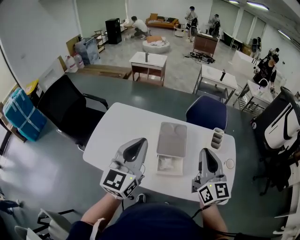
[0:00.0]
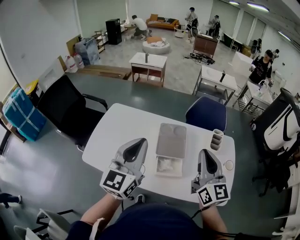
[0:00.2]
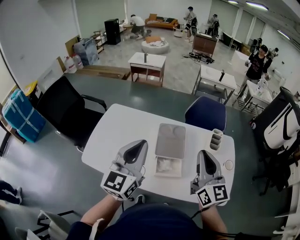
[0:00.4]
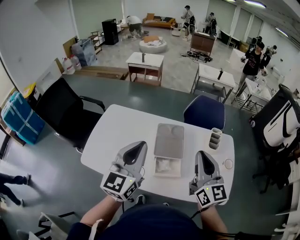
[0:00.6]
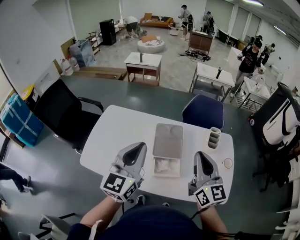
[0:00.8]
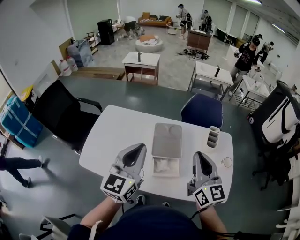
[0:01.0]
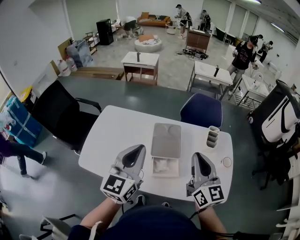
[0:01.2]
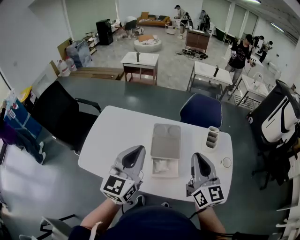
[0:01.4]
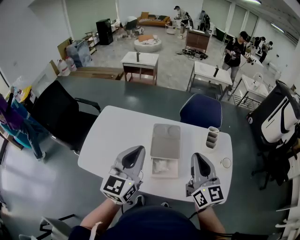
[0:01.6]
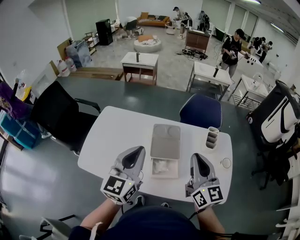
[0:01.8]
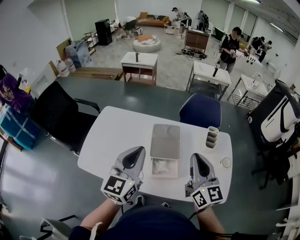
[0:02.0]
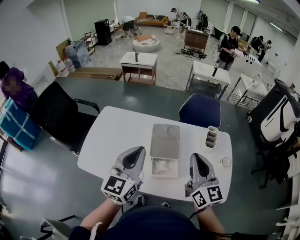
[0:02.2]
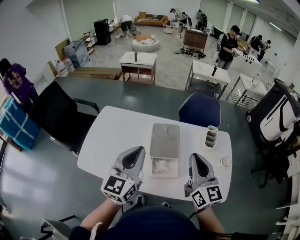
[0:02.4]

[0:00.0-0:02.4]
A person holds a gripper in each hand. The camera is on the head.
0:00.0 to 0:01.2: The grippers stay close to where they were, moving slightly.
0:01.2 to 0:02.4: The two grippers keep their place.

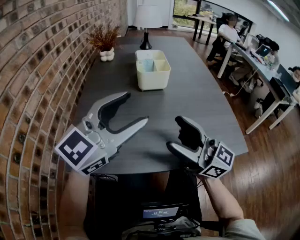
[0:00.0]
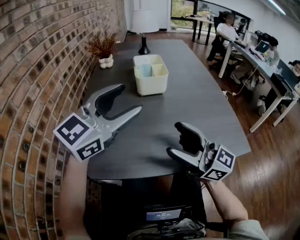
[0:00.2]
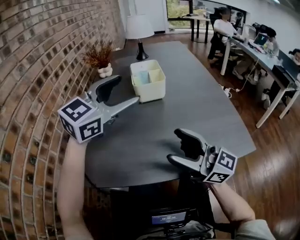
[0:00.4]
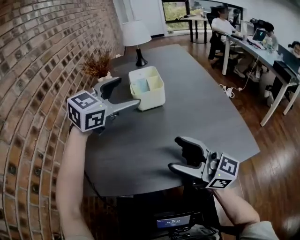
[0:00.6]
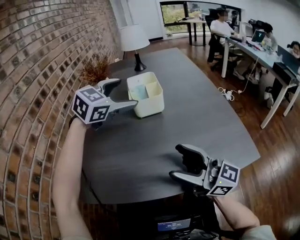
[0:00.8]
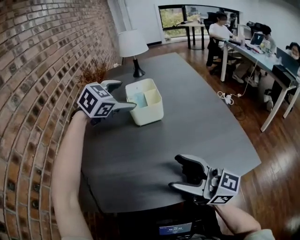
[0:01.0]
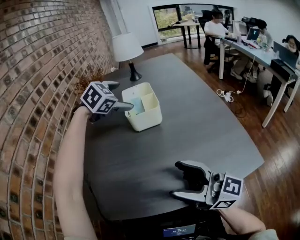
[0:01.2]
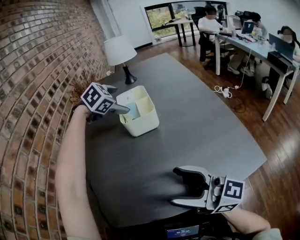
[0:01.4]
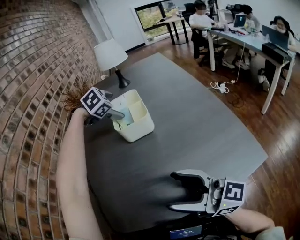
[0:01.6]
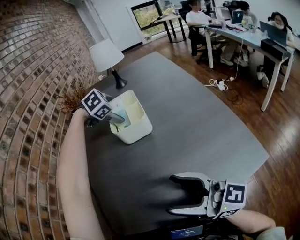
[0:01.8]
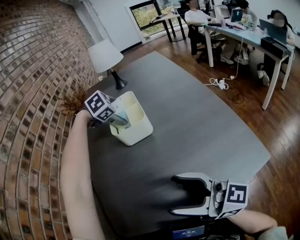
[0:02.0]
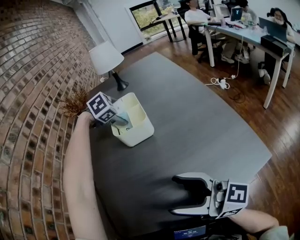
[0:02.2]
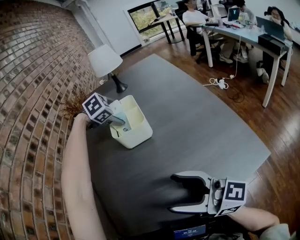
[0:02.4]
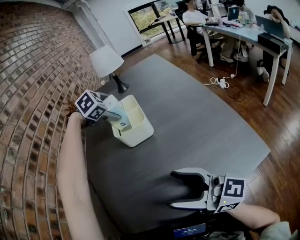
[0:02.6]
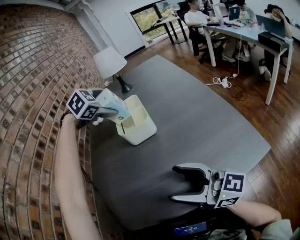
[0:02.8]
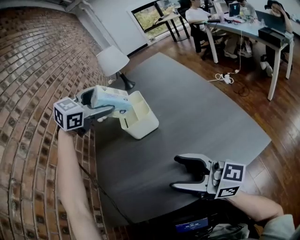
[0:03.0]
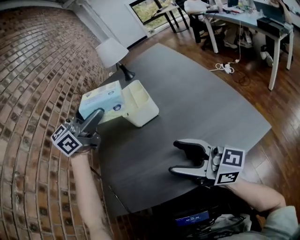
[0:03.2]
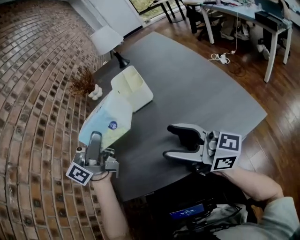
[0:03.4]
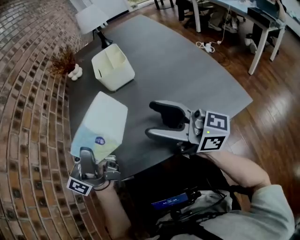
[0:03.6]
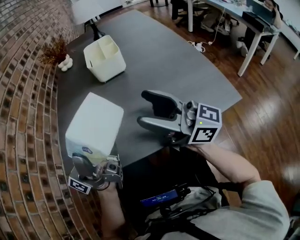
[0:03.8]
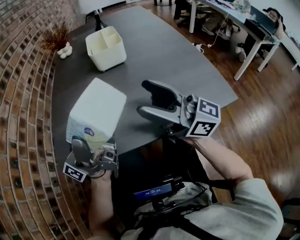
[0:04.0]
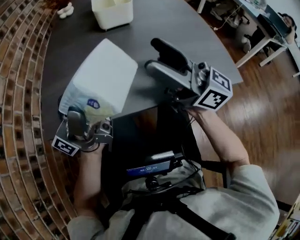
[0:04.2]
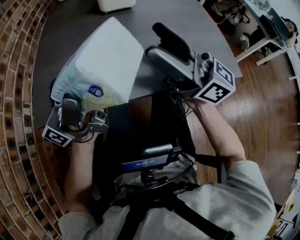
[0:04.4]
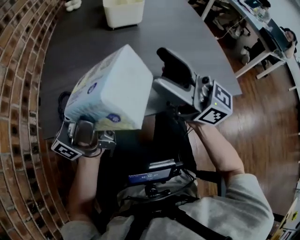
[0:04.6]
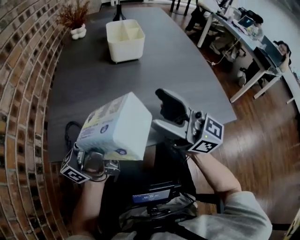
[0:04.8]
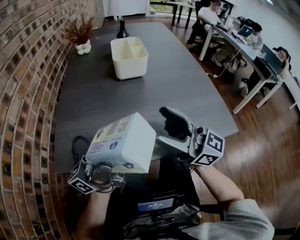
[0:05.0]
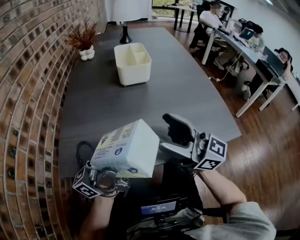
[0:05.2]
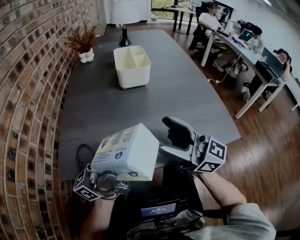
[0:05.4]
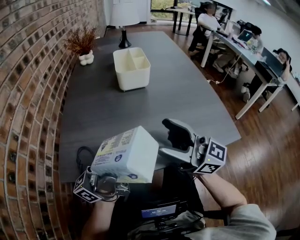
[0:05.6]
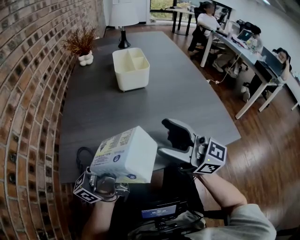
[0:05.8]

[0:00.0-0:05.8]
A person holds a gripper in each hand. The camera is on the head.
0:00.0 to 0:01.4: The left gripper moves forward, roughly 35 cm, points its fingers approximately 50 degrees further downward, and opens its fingers.
0:01.4 to 0:02.8: The left gripper travels upward by about 5 cm.
0:02.8 to 0:04.4: The left gripper travels backward by roughly 40 cm, and angles its fingers upward, by some 100 degrees.
0:04.4 to 0:05.8: The grippers move only a little.

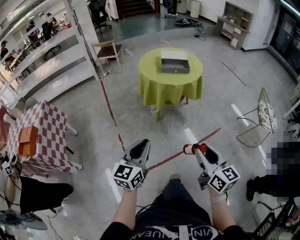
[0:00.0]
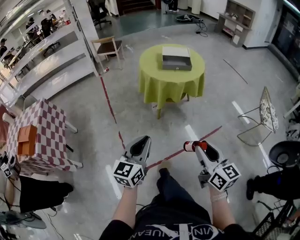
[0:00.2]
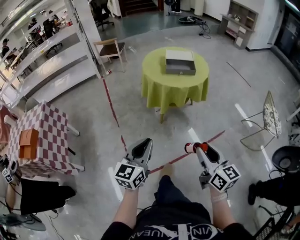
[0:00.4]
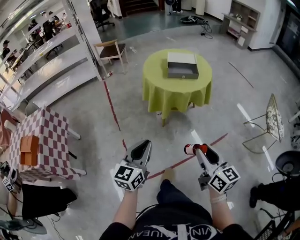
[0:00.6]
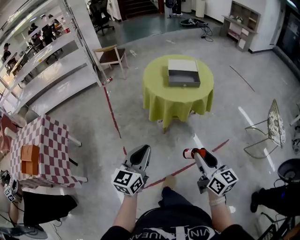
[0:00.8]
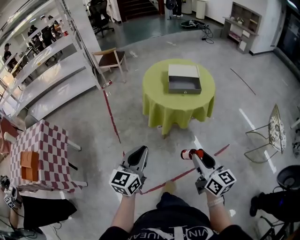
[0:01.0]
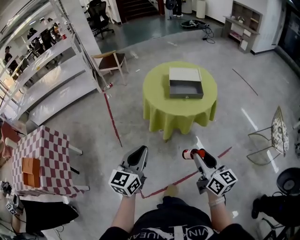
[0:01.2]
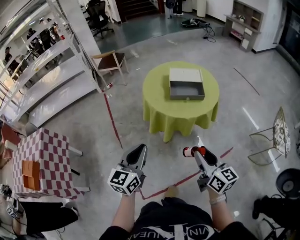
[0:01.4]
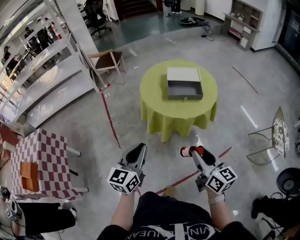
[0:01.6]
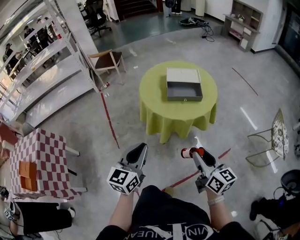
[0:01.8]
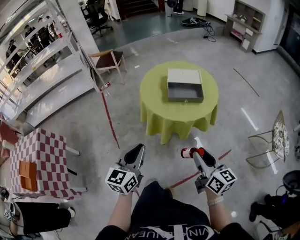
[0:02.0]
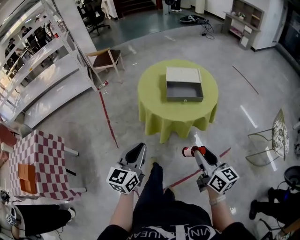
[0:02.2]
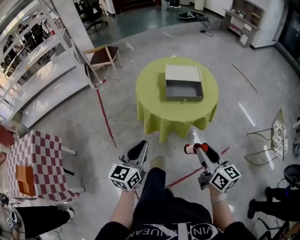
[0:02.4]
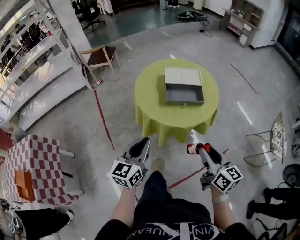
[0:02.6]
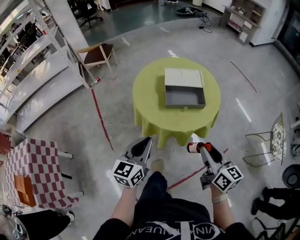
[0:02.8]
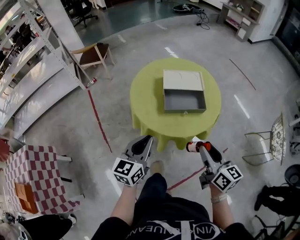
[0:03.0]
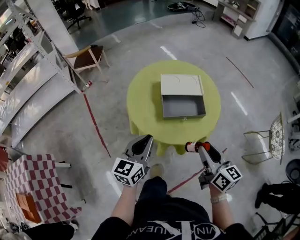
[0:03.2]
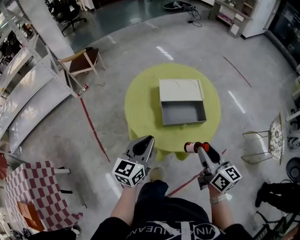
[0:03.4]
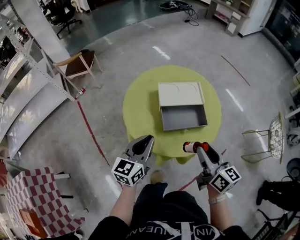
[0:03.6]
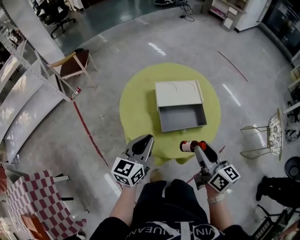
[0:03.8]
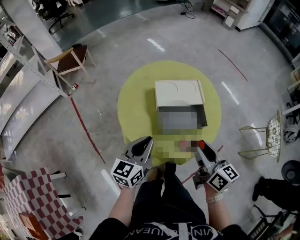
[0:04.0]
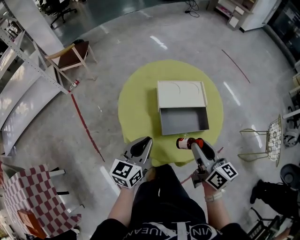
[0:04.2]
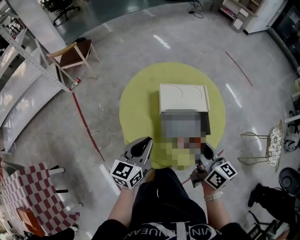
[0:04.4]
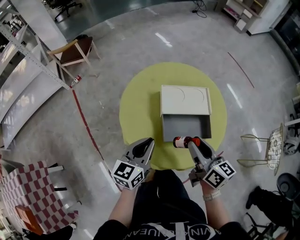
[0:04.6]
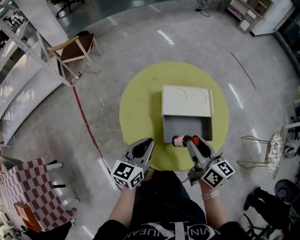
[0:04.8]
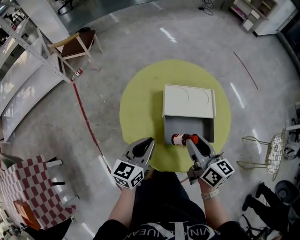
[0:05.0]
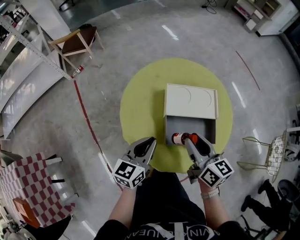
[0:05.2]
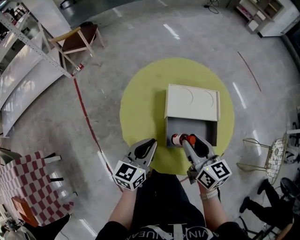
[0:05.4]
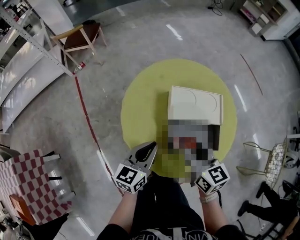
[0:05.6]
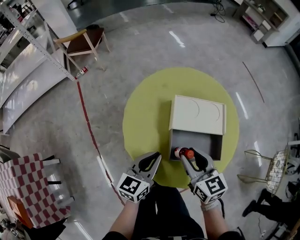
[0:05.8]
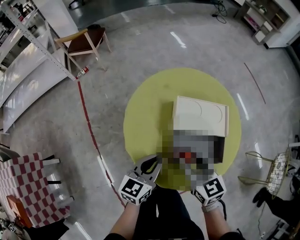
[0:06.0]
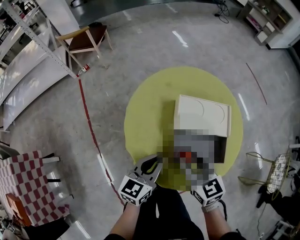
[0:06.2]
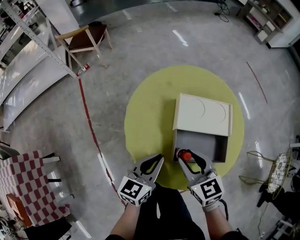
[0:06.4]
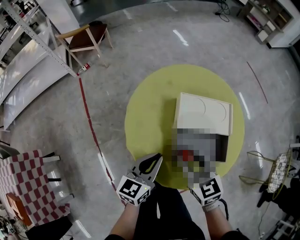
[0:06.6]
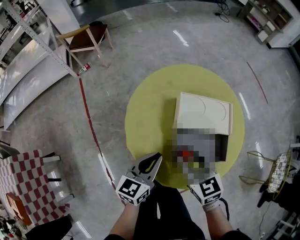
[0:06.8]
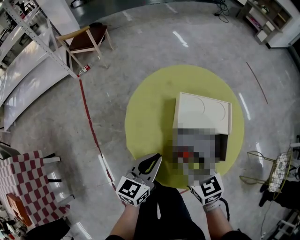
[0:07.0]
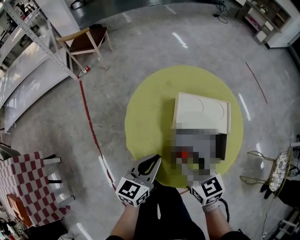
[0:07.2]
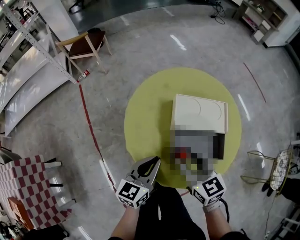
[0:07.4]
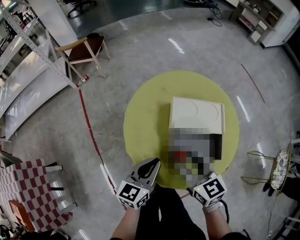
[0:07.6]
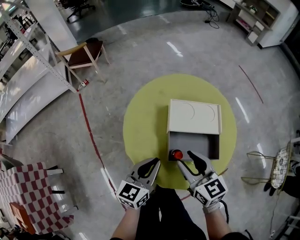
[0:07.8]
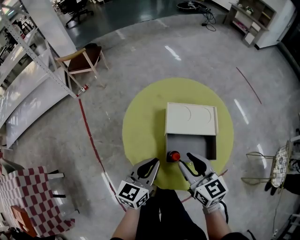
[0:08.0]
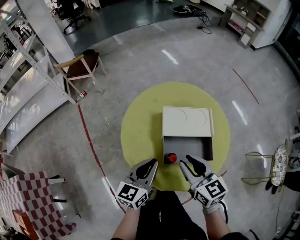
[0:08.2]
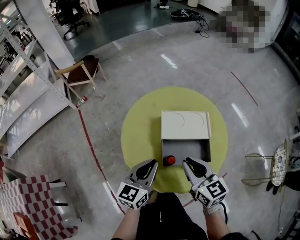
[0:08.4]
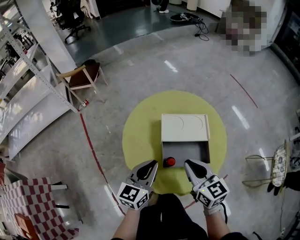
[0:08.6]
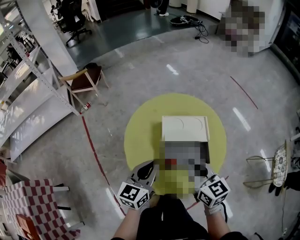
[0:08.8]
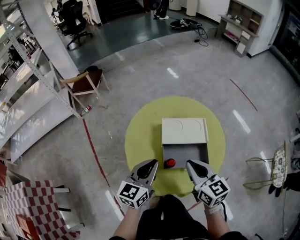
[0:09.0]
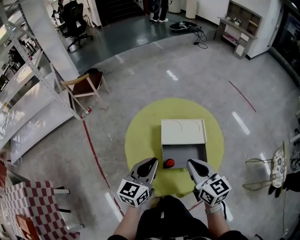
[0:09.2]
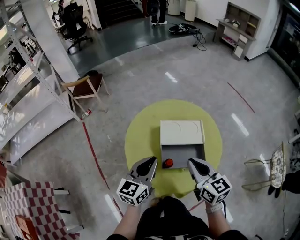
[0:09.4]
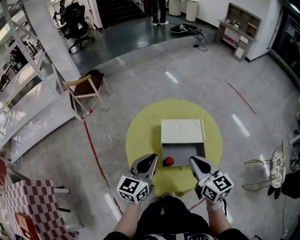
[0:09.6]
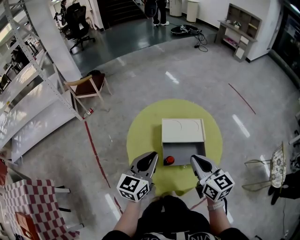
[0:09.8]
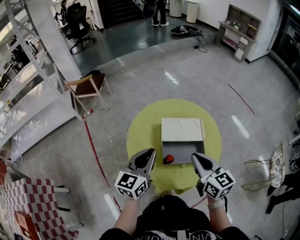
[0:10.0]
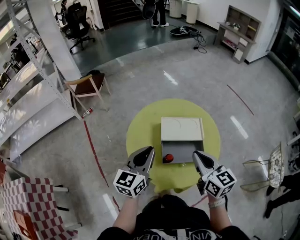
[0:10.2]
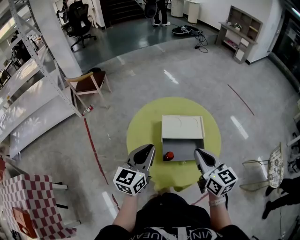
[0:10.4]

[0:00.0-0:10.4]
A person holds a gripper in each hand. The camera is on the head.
0:00.0 to 0:01.4: The two grippers go roughly 30 cm forward.
0:01.4 to 0:03.0: The grippers both shift forward by roughly 20 cm.
0:03.0 to 0:04.4: Both grippers travel together forward, about 20 cm.
0:04.4 to 0:06.0: The right gripper is displaced downward, to the left and forward by about 10 cm, and changes its angle by roughly 40 degrees. Meanwhile the left gripper goes roughly 5 cm downward.
0:06.0 to 0:07.4: The grippers move only a little.
0:07.4 to 0:09.0: The right gripper shifts some 10 cm upward and to the right, and closes its fingers; the left gripper is displaced upward by some 10 cm.
0:09.0 to 0:10.4: The two grippers go approximately 5 cm upward.

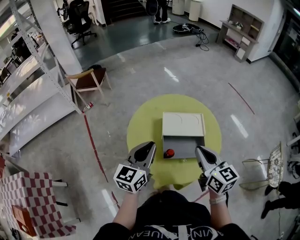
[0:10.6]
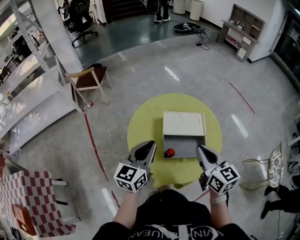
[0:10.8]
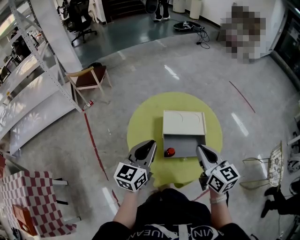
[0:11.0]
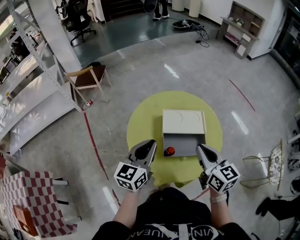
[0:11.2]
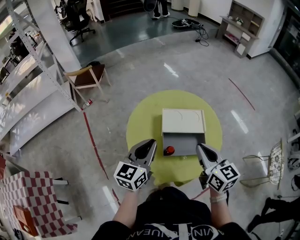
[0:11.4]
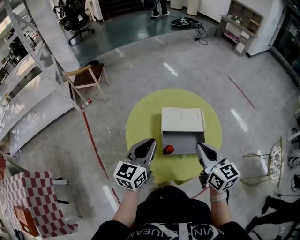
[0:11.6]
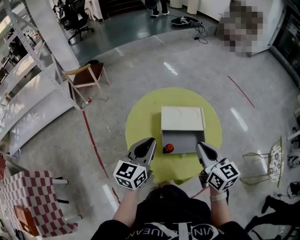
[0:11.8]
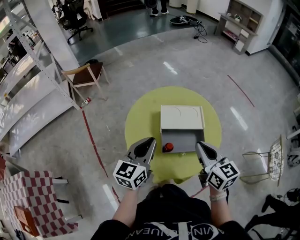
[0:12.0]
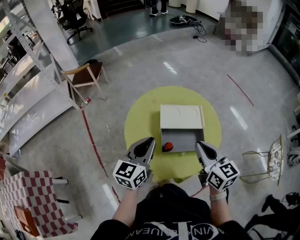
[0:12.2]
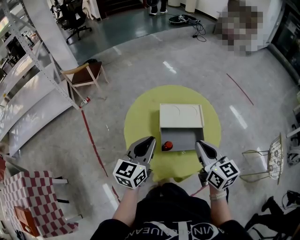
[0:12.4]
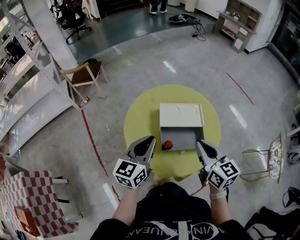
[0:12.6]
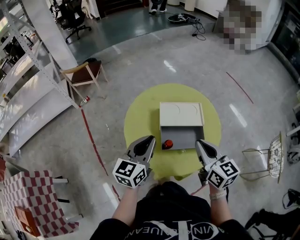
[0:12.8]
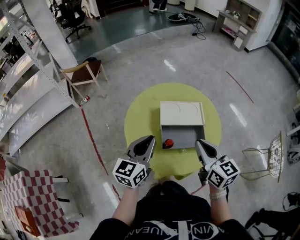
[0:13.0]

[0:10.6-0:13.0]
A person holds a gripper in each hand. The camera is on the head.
0:10.6 to 0:11.8: Neither gripper changes place.
0:11.8 to 0:13.0: Both grippers stay put.

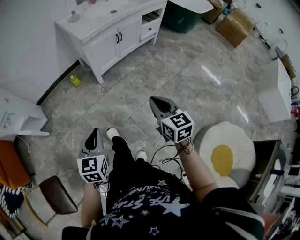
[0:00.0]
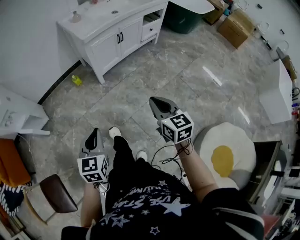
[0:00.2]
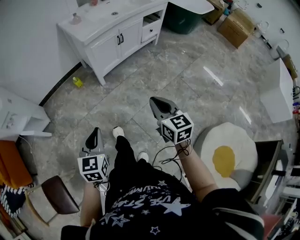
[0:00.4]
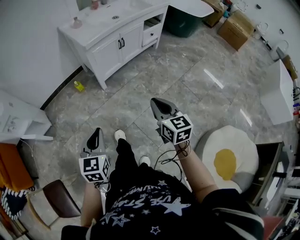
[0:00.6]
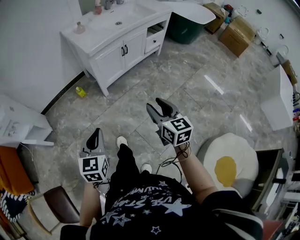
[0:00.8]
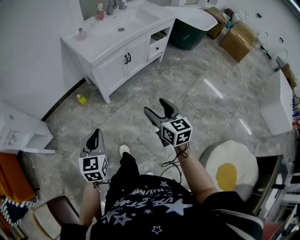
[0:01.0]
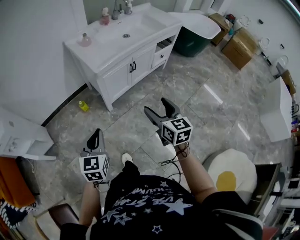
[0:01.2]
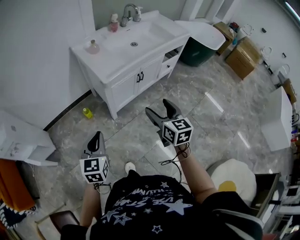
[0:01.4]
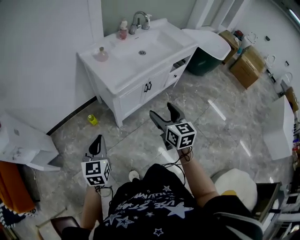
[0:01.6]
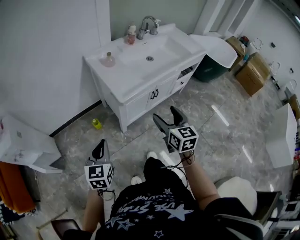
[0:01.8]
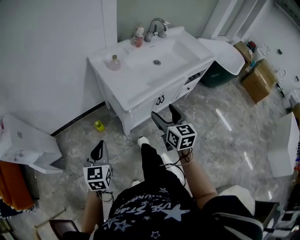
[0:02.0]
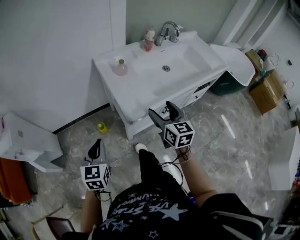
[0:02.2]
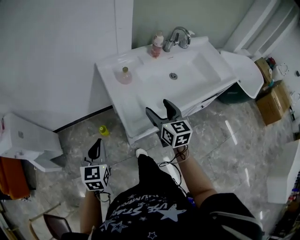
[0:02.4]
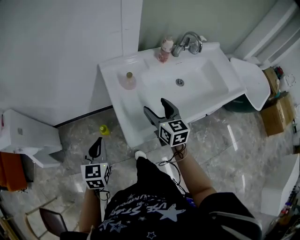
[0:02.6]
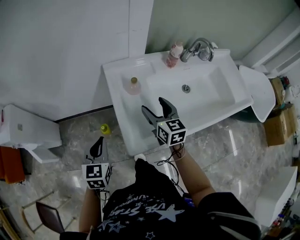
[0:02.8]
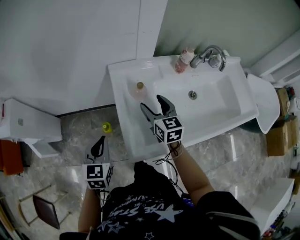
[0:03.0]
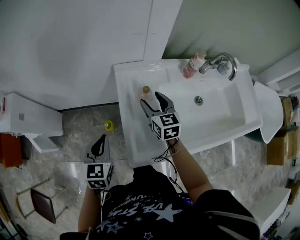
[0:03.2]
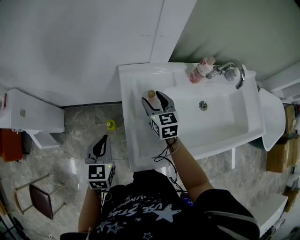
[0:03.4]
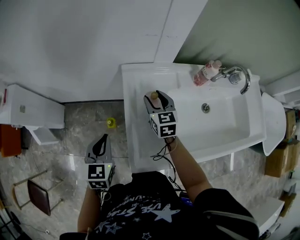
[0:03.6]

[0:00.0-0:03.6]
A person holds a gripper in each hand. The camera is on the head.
0:00.0 to 0:01.8: Both grippers are carried forward, roughly 40 cm. The right gripper opens up.
0:01.8 to 0:03.6: The left gripper changes place by about 35 cm, and turns by about 30 degrees. Meanwhile the right gripper moves about 60 cm, swivels about 30 degrees, and closes its fingers.
